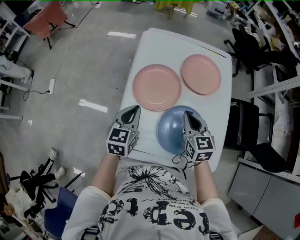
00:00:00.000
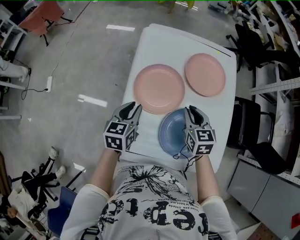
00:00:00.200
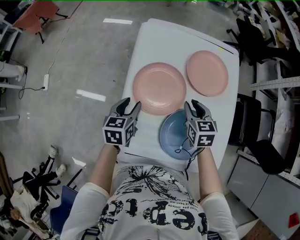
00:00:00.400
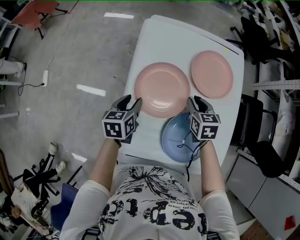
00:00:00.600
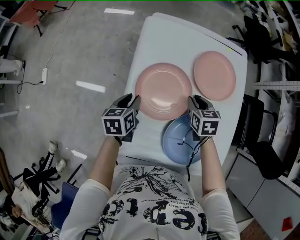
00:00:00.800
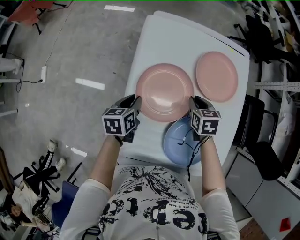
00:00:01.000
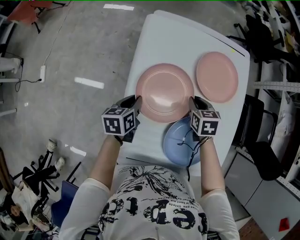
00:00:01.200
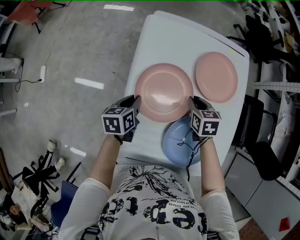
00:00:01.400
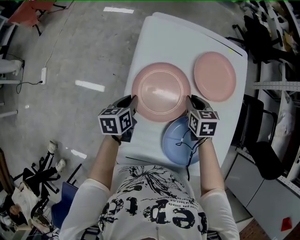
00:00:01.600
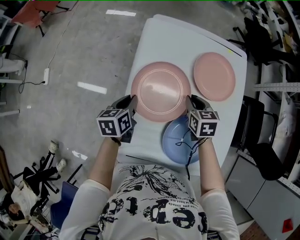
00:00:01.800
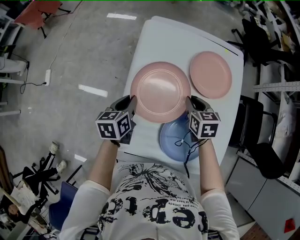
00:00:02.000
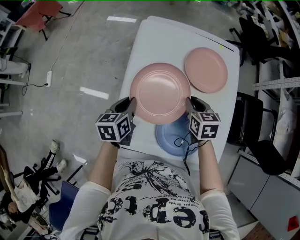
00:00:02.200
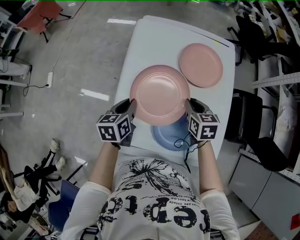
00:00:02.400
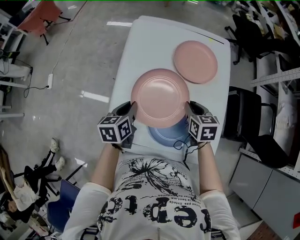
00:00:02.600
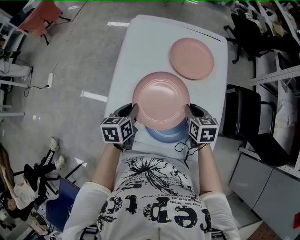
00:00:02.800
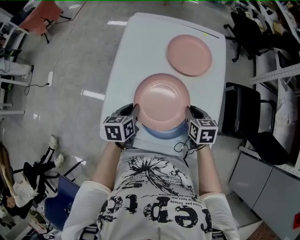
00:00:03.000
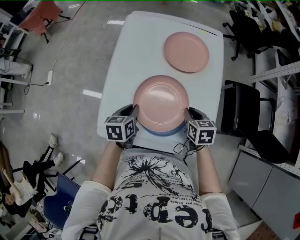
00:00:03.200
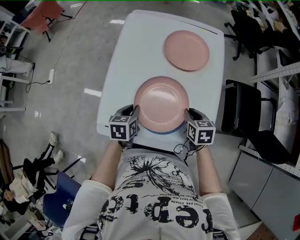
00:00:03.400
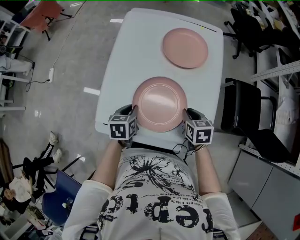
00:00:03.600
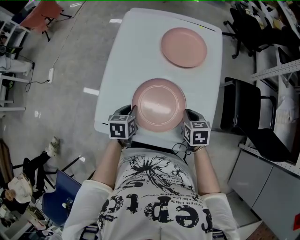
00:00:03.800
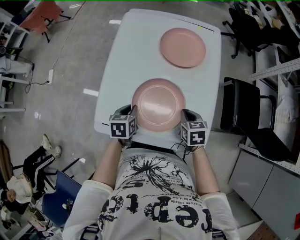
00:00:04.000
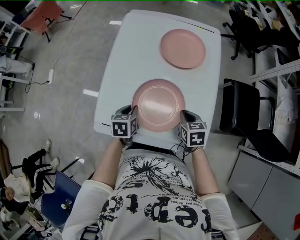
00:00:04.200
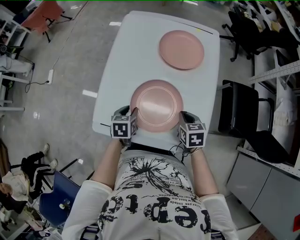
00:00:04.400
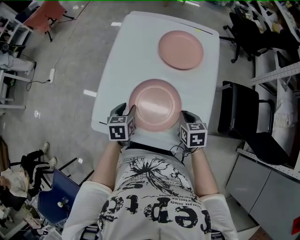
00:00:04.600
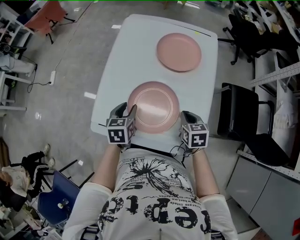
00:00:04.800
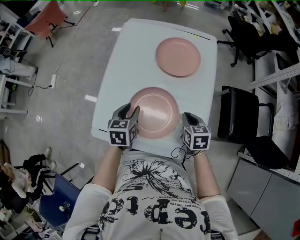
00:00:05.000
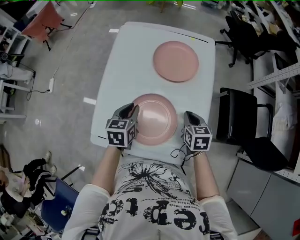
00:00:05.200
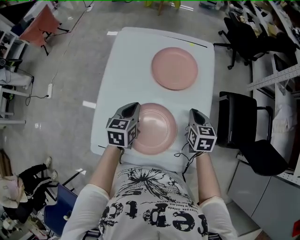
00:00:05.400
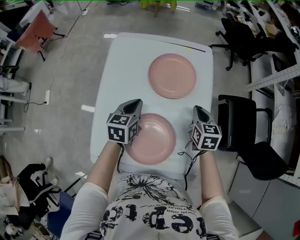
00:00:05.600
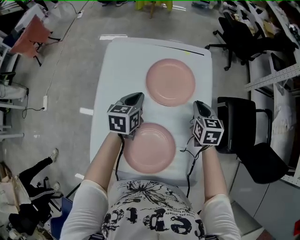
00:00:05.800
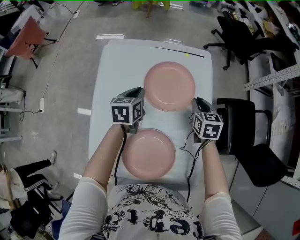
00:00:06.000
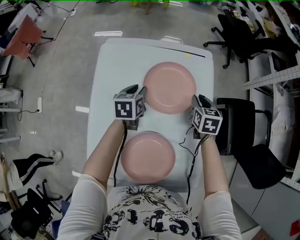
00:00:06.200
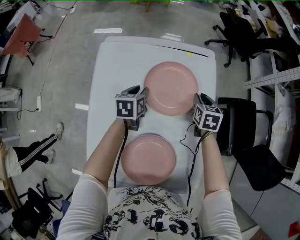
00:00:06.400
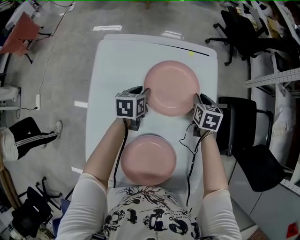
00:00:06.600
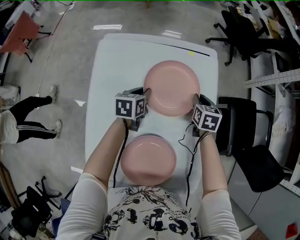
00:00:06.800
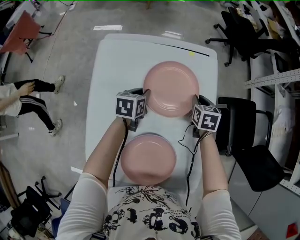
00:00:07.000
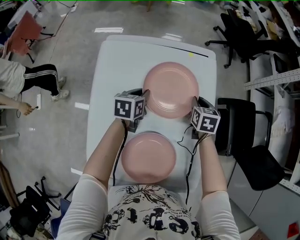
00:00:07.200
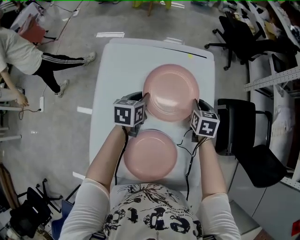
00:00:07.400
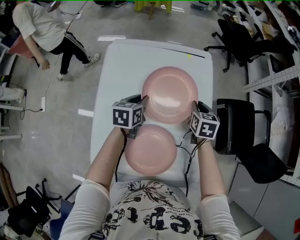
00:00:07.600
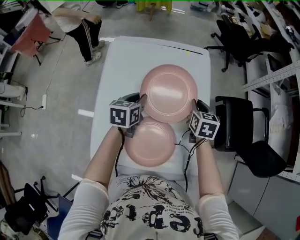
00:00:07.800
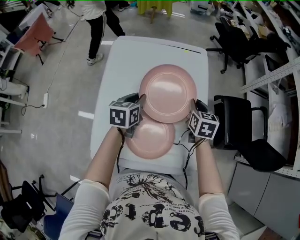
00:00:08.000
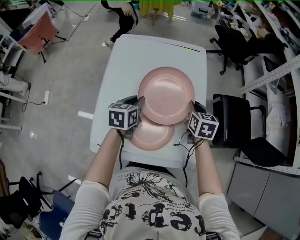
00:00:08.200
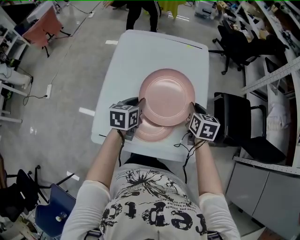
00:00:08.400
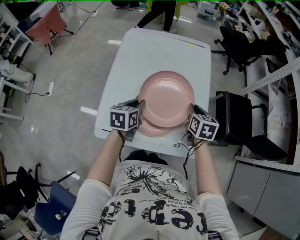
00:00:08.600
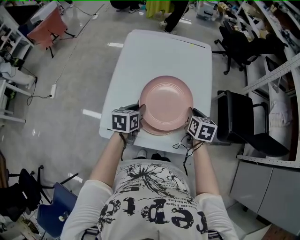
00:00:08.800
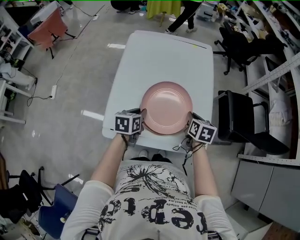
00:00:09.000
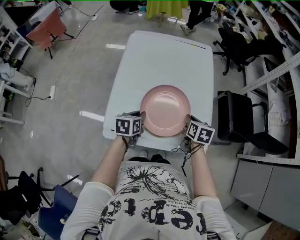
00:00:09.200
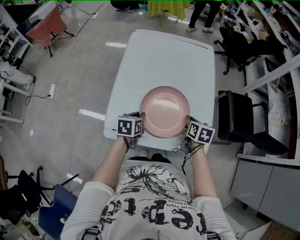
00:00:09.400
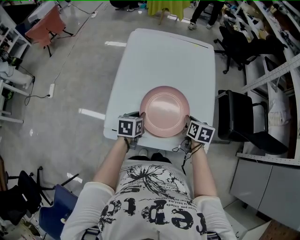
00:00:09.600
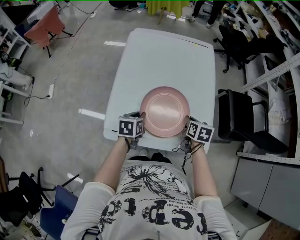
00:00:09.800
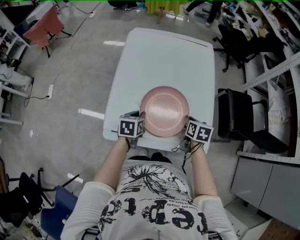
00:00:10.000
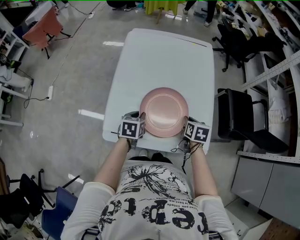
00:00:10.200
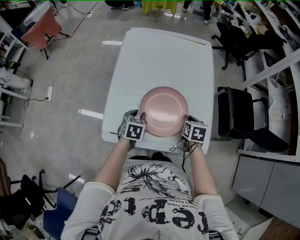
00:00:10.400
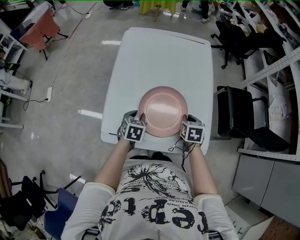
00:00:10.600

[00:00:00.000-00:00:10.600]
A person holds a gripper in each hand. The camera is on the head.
00:00:00.000 to 00:00:01.600: The left gripper travels downward, forward and to the left by some 20 cm, rotates approximately 30 degrees, and opens, then closes once more. The right gripper goes about 20 cm forward and downward, and rotates about 20 degrees.
00:00:01.600 to 00:00:03.000: Both grippers move backward and to the right, approximately 25 cm.
00:00:03.000 to 00:00:04.600: The right gripper goes about 5 cm backward. Meanwhile the left gripper changes place by roughly 5 cm, and opens its fingers.
00:00:04.600 to 00:00:06.000: The grippers both shift forward by some 30 cm. The left gripper closes its fingers.
00:00:06.000 to 00:00:07.600: The left gripper heads backward, covering approximately 5 cm.
00:00:07.600 to 00:00:09.000: The two grippers go approximately 30 cm backward.
00:00:09.000 to 00:00:10.600: The left gripper is displaced downward by some 5 cm, and turns by some 20 degrees; the right gripper ends up roughly 5 cm from where it was.

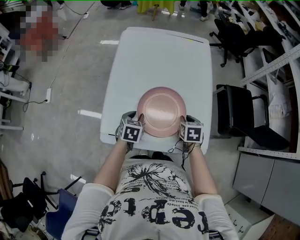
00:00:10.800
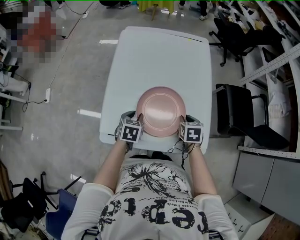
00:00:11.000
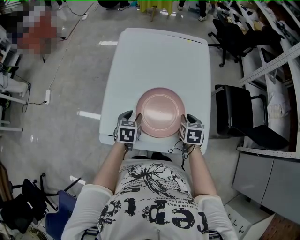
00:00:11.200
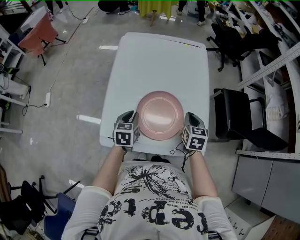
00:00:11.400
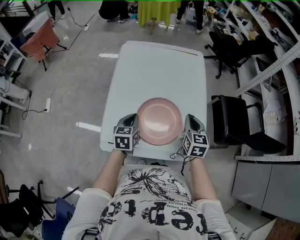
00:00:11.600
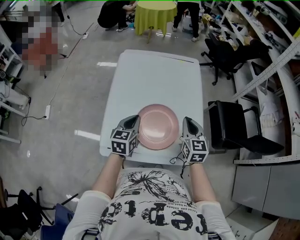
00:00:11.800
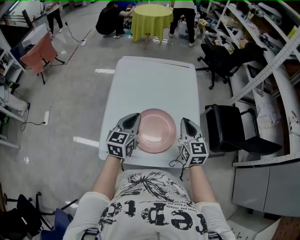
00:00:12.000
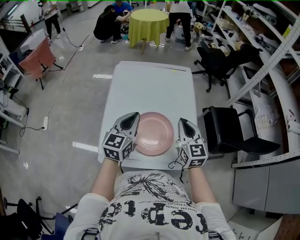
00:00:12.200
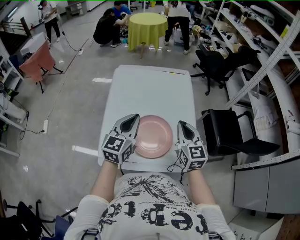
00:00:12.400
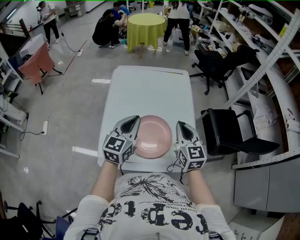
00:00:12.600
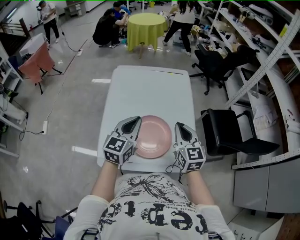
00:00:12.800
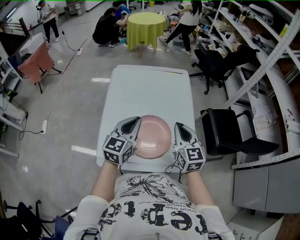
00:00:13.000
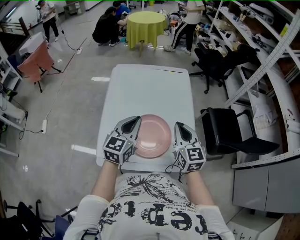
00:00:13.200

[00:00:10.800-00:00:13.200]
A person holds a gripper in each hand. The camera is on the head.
00:00:10.800 to 00:00:12.000: Both grippers move upward, approximately 20 cm. The right gripper angles its fingers upward, by some 40 degrees, and closes. Meanwhile the left gripper angles its fingers upward, by roughly 40 degrees, and closes its fingers.
00:00:12.000 to 00:00:13.200: The left gripper changes place by some 5 cm.

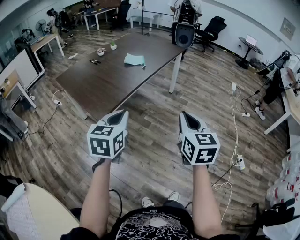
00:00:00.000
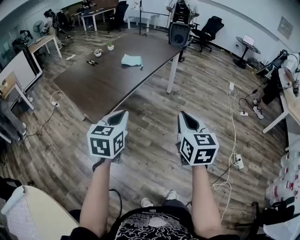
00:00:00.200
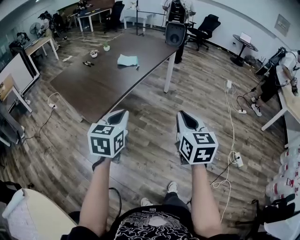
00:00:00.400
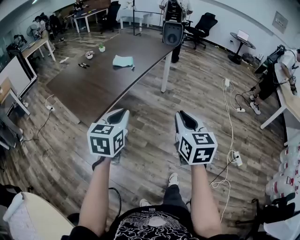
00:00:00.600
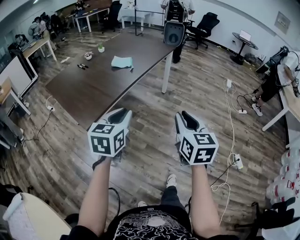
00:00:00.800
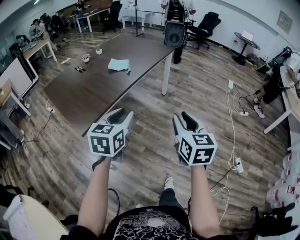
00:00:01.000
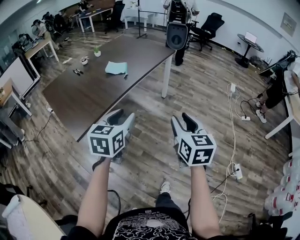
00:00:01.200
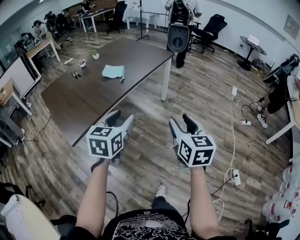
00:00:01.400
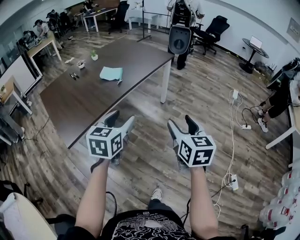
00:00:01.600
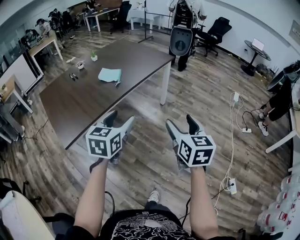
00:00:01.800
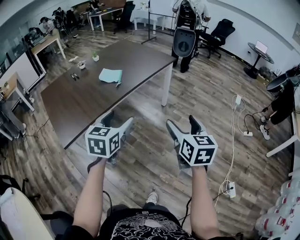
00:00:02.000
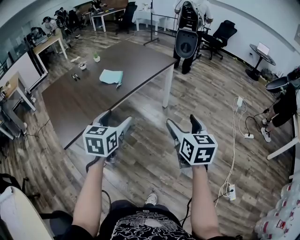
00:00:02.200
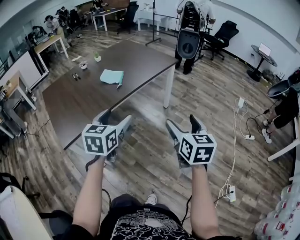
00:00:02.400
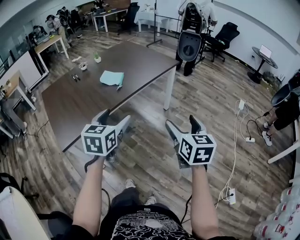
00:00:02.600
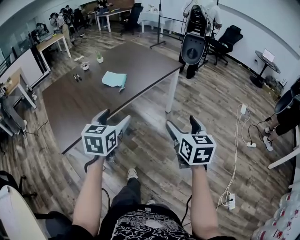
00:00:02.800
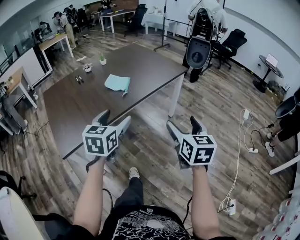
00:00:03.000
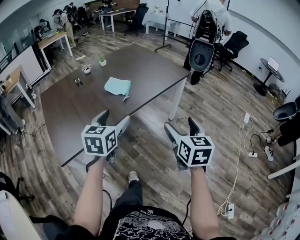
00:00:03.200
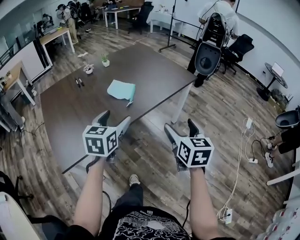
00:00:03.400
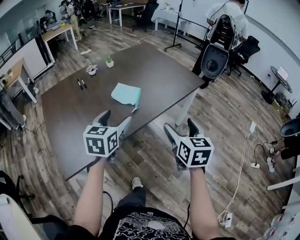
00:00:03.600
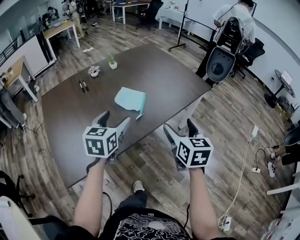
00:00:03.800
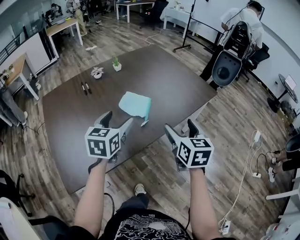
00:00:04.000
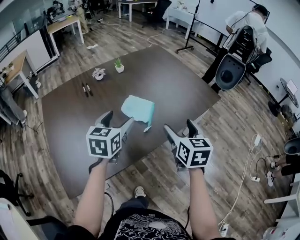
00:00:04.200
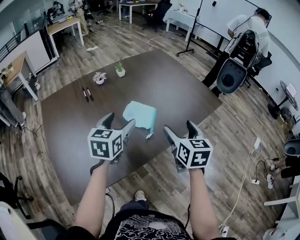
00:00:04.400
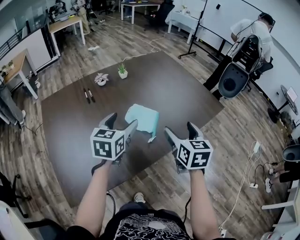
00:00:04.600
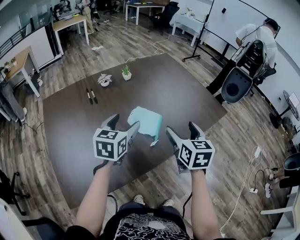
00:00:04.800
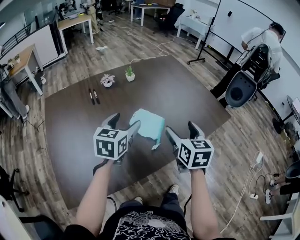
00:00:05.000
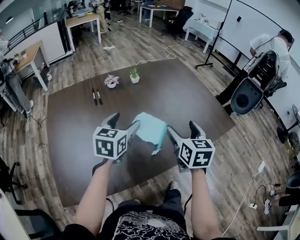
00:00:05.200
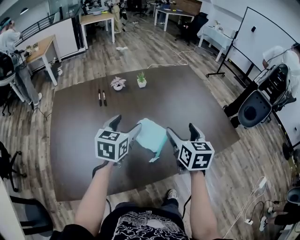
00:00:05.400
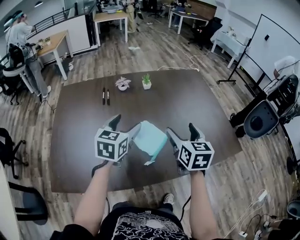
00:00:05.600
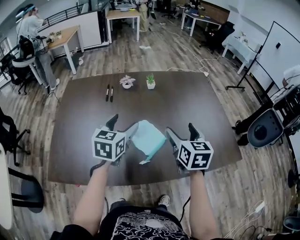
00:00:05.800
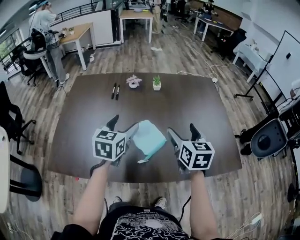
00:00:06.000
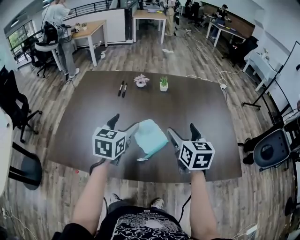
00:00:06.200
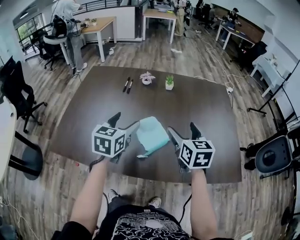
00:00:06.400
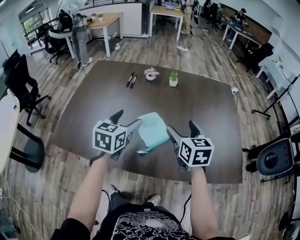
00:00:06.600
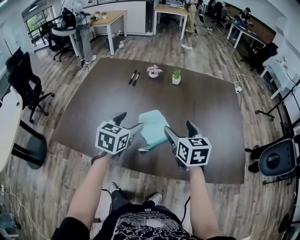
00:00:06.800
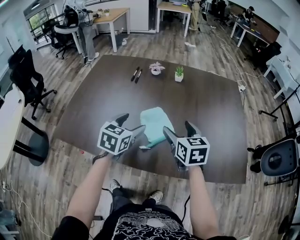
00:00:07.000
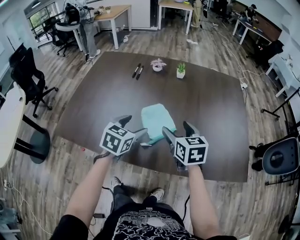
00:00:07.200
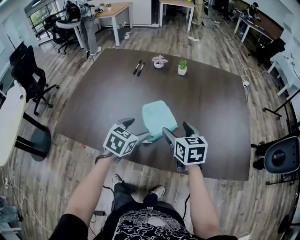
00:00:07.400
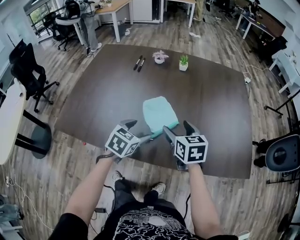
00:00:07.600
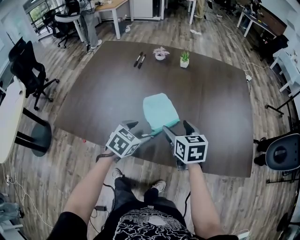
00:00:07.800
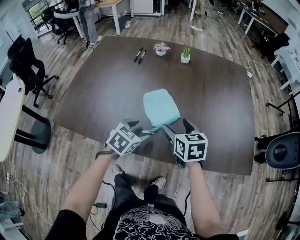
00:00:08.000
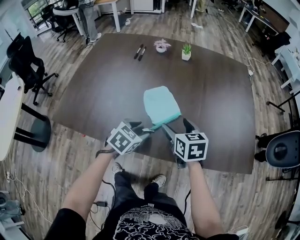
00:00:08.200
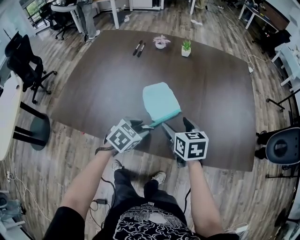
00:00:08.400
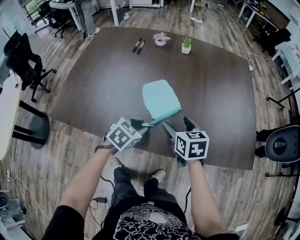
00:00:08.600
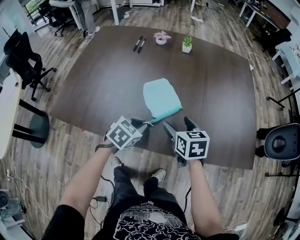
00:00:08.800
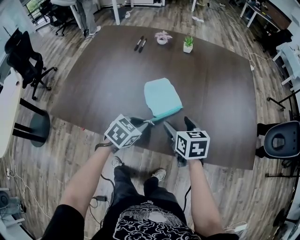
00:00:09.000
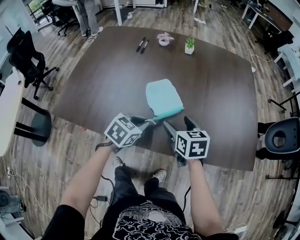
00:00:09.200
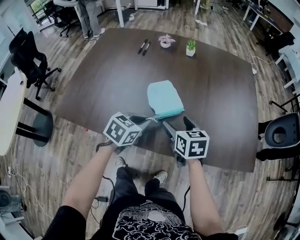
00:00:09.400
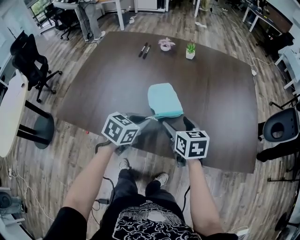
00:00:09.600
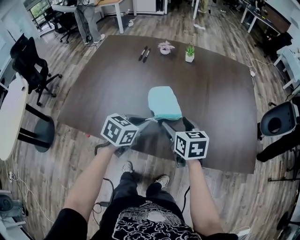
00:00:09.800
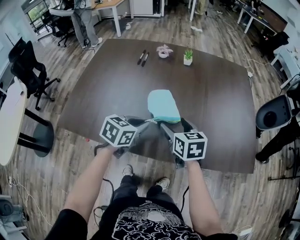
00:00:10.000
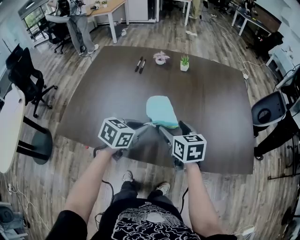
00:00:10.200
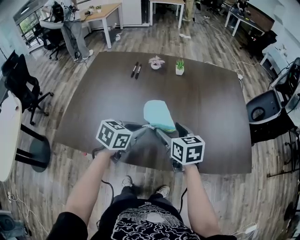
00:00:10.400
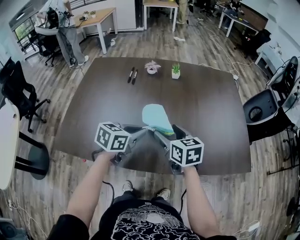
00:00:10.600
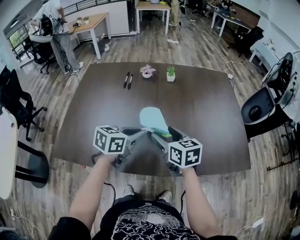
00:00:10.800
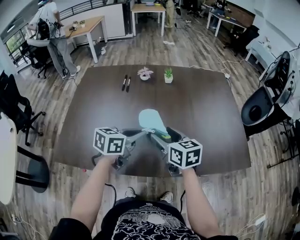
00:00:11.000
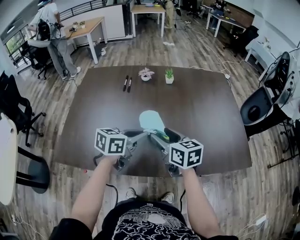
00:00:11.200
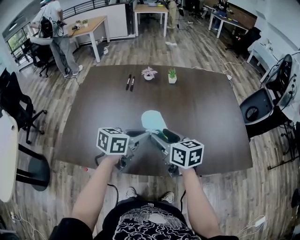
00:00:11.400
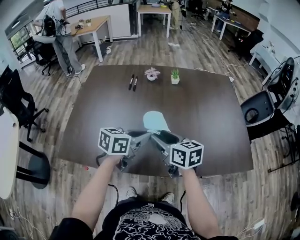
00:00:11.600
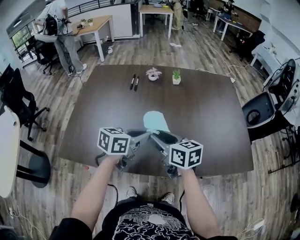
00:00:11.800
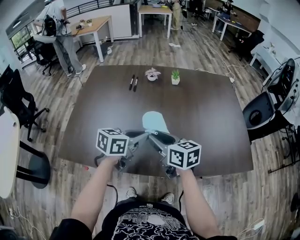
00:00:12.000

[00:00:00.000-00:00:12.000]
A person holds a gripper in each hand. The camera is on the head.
00:00:00.000 to 00:00:01.600: Both grippers move forward and to the right, roughly 30 cm. The left gripper opens up, while the right gripper opens its fingers.
00:00:01.600 to 00:00:03.000: Both grippers move forward, some 15 cm.
00:00:03.000 to 00:00:04.400: The two grippers go some 35 cm forward and to the left.
00:00:04.400 to 00:00:06.000: The left gripper moves roughly 10 cm, and turns by about 30 degrees; the right gripper shifts by roughly 20 cm, and rotates about 30 degrees.
00:00:06.000 to 00:00:07.600: The right gripper shifts roughly 10 cm downward and to the left, and rotates about 20 degrees; the left gripper moves downward and backward, some 15 cm, and turns by approximately 20 degrees.
00:00:07.600 to 00:00:09.000: The left gripper shifts by some 5 cm, and closes its fingers; the right gripper ends up approximately 5 cm from where it was.
00:00:09.000 to 00:00:10.400: The left gripper goes about 10 cm upward, while the right gripper moves upward and to the left, roughly 10 cm.
00:00:10.400 to 00:00:12.000: The right gripper moves to the left, some 5 cm, and closes.
